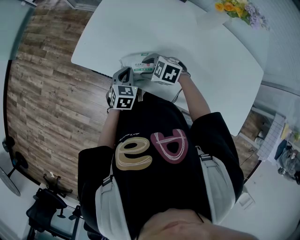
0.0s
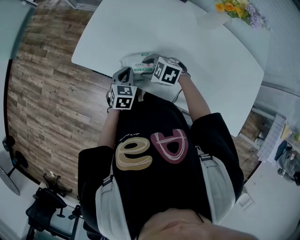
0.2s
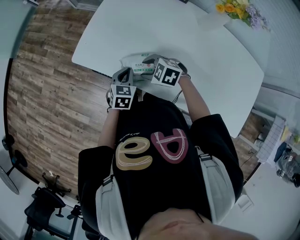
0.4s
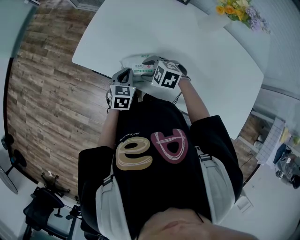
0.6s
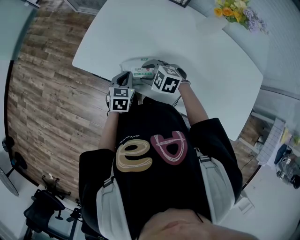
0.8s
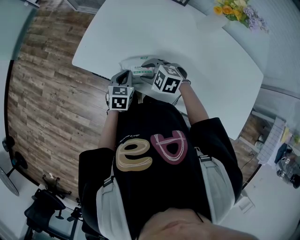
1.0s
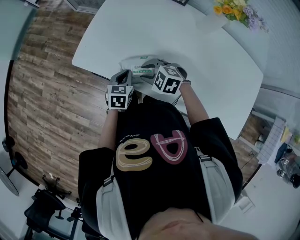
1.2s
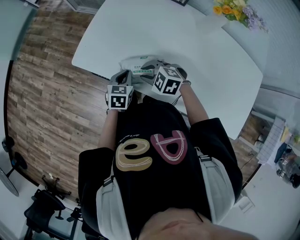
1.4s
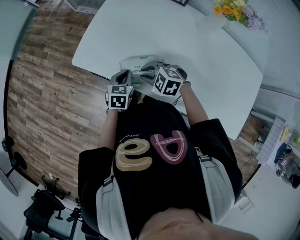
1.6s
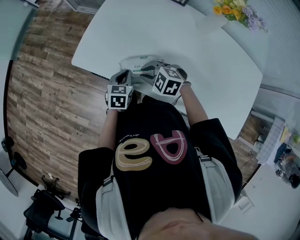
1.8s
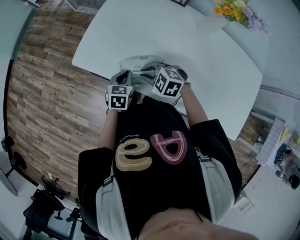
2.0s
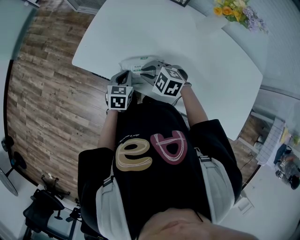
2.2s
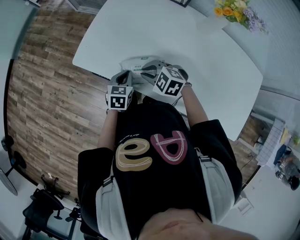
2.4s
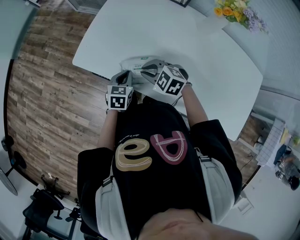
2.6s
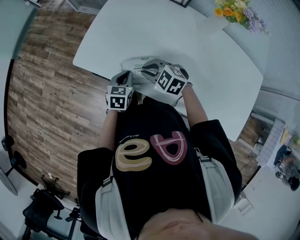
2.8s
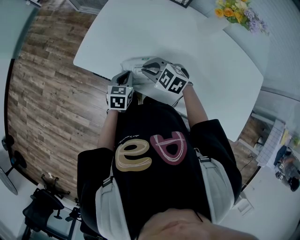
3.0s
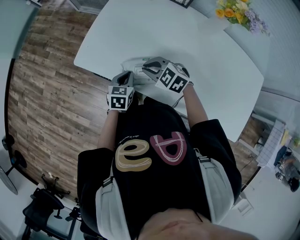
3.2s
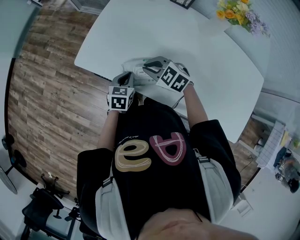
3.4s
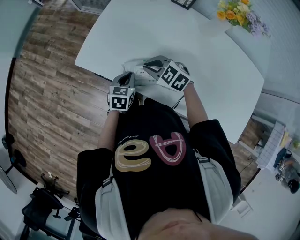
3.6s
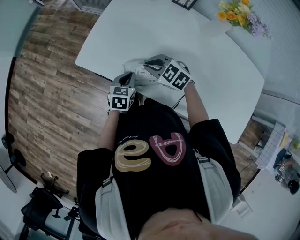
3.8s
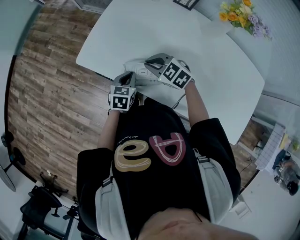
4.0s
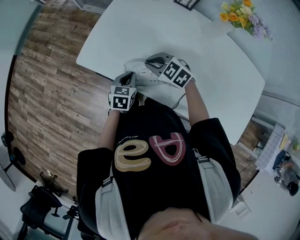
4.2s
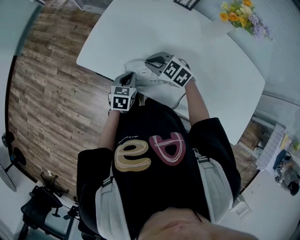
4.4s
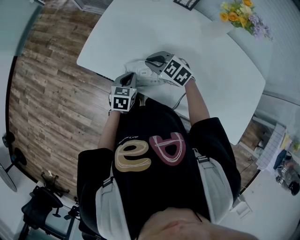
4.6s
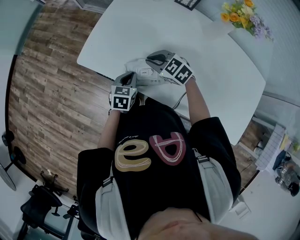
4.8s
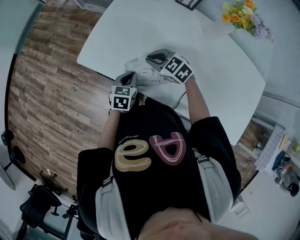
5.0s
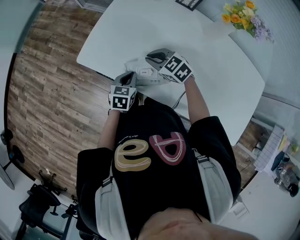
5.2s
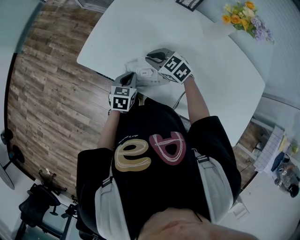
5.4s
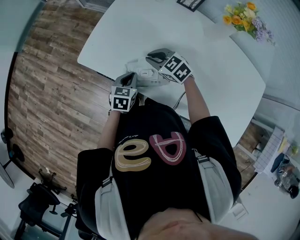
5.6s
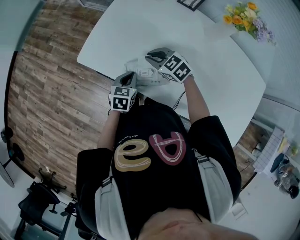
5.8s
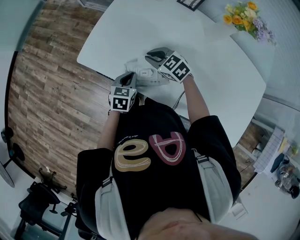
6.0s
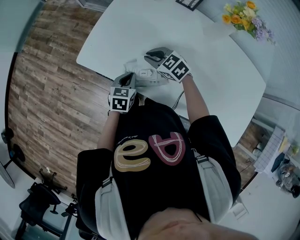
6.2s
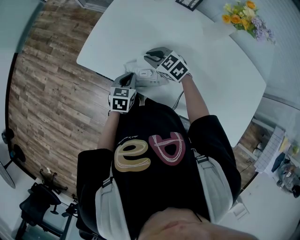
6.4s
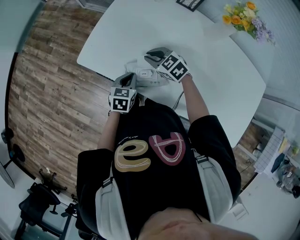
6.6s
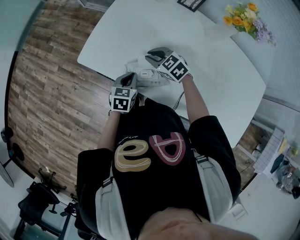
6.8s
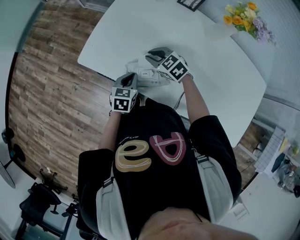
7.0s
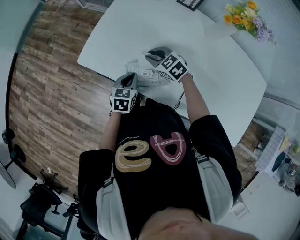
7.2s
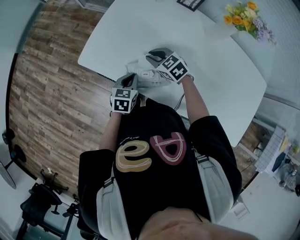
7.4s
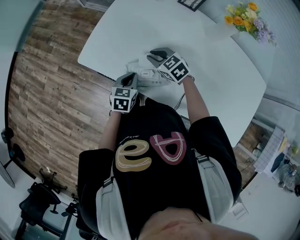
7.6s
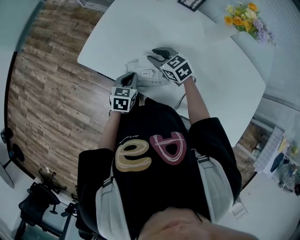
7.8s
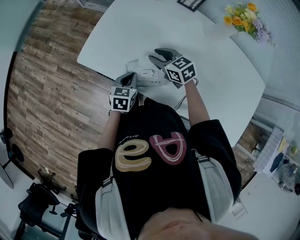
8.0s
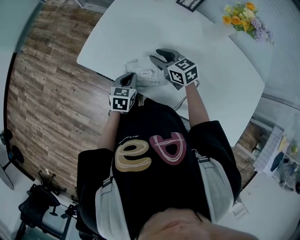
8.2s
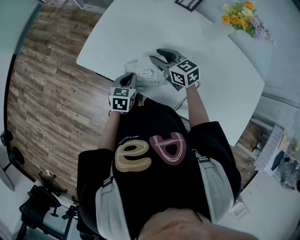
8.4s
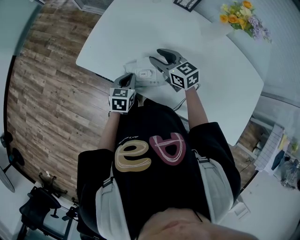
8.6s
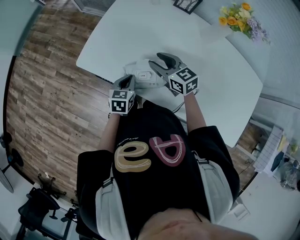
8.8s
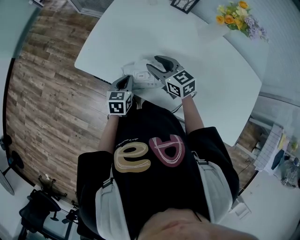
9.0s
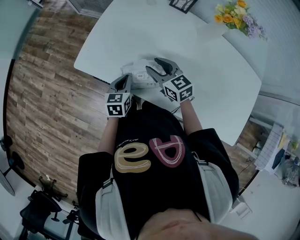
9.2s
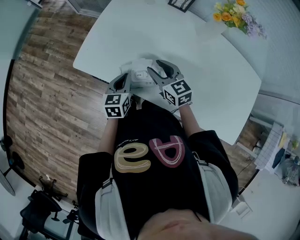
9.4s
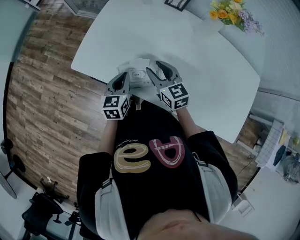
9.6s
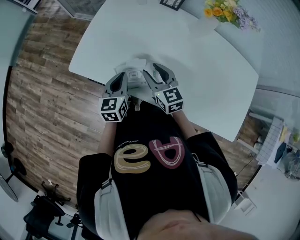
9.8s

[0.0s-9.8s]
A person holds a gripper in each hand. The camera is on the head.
0.0s to 1.4s: The right gripper closes up.
1.4s to 4.2s: The grippers make only small movements.
4.2s to 7.0s: There are only small adjustments of the grippers.
7.0s to 8.4s: The right gripper shifts by about 5 cm, swivels some 20 degrees, and opens.
8.4s to 9.8s: The left gripper shifts about 10 cm upward, and rotates roughly 20 degrees. Meanwhile the right gripper travels backward by roughly 5 cm, and rotates some 20 degrees.

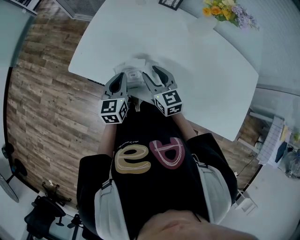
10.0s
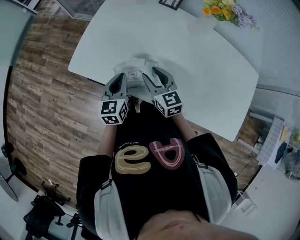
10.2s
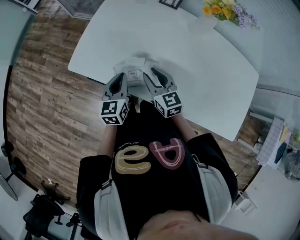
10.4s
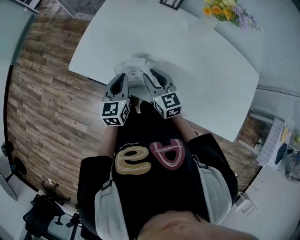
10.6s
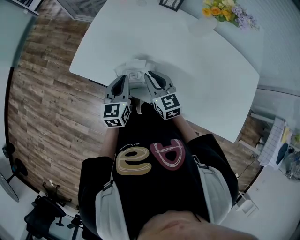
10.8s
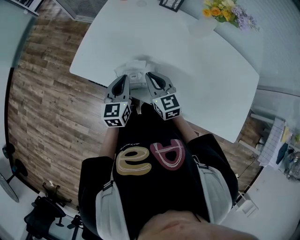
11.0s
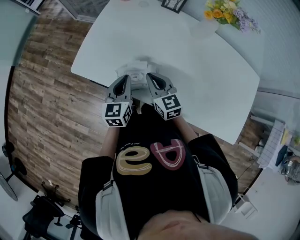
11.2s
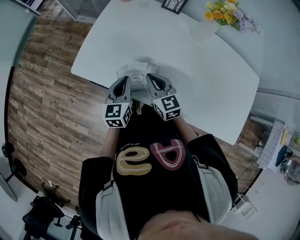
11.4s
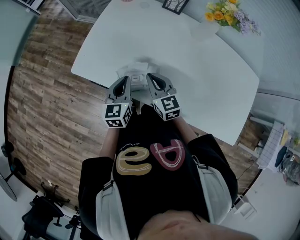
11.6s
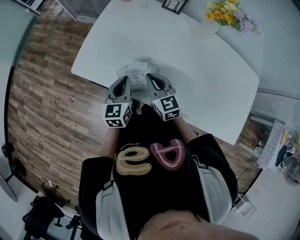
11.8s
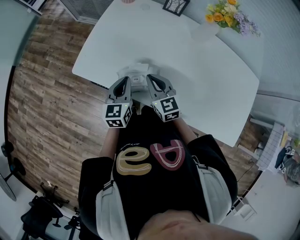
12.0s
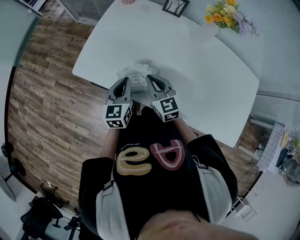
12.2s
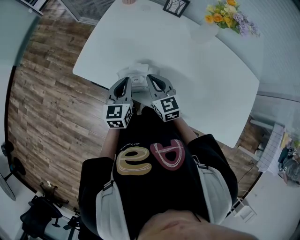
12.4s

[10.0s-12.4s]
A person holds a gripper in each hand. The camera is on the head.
10.0s to 11.2s: The right gripper closes its fingers.
11.2s to 12.4s: Both grippers stay put.

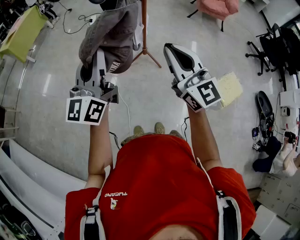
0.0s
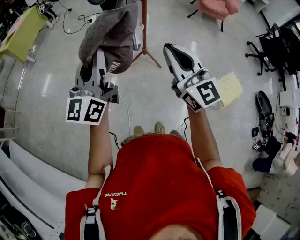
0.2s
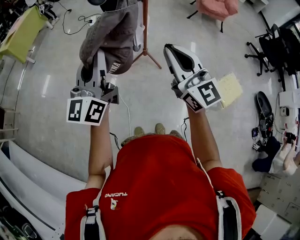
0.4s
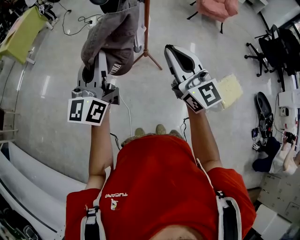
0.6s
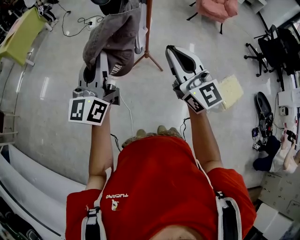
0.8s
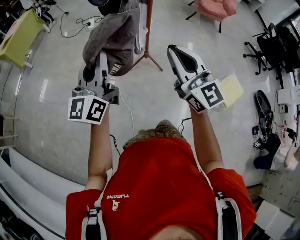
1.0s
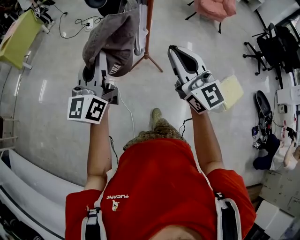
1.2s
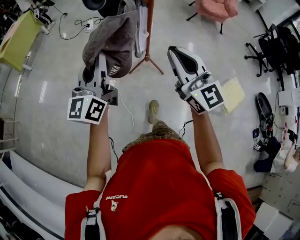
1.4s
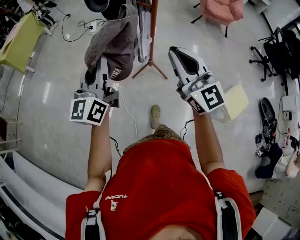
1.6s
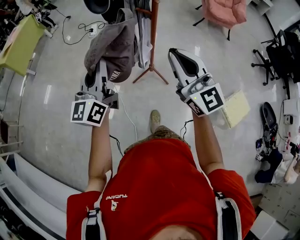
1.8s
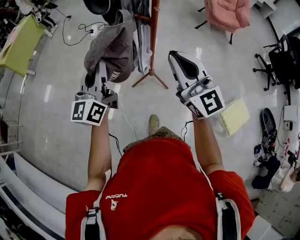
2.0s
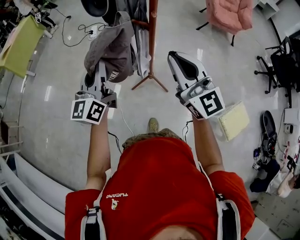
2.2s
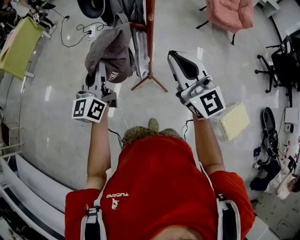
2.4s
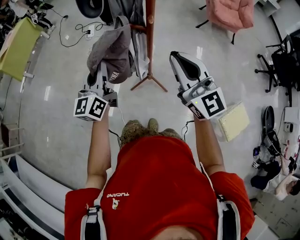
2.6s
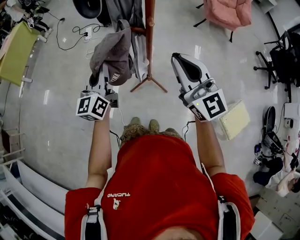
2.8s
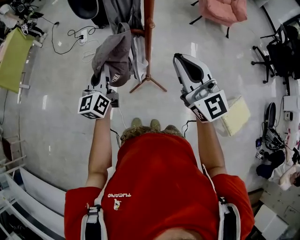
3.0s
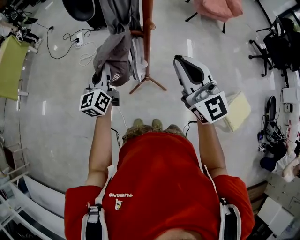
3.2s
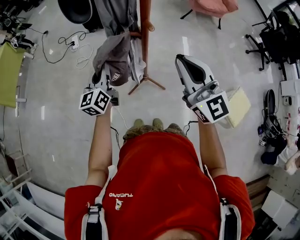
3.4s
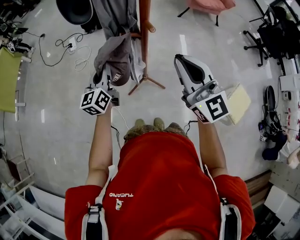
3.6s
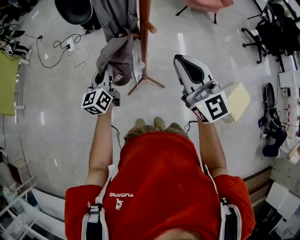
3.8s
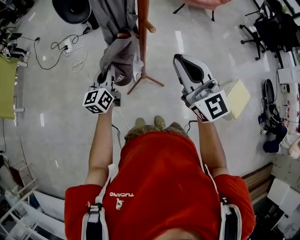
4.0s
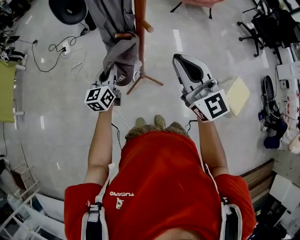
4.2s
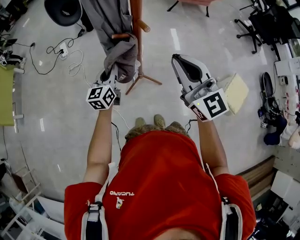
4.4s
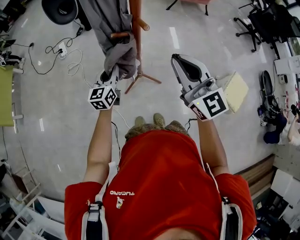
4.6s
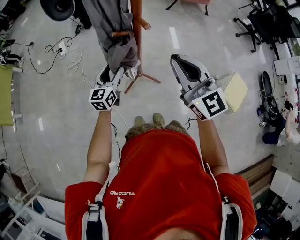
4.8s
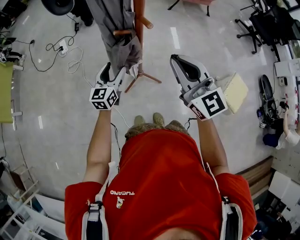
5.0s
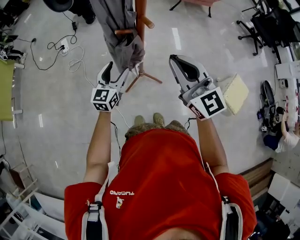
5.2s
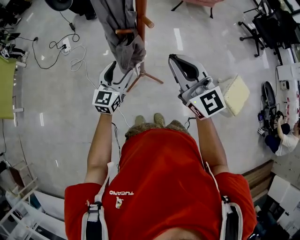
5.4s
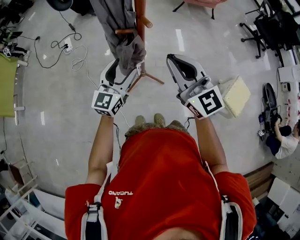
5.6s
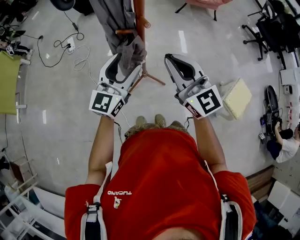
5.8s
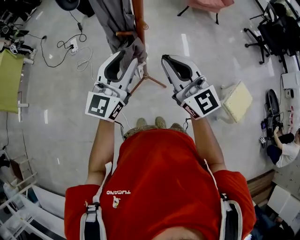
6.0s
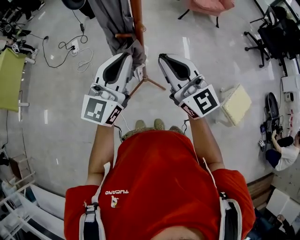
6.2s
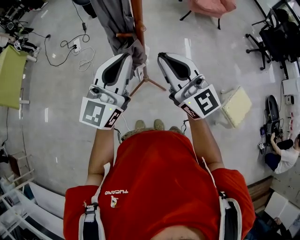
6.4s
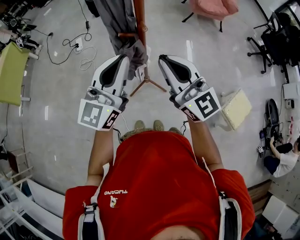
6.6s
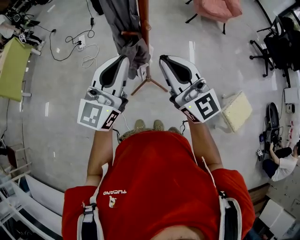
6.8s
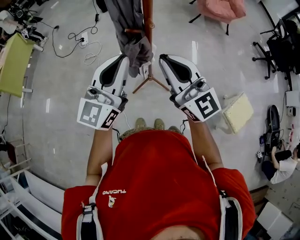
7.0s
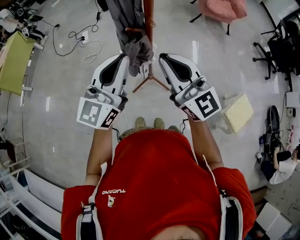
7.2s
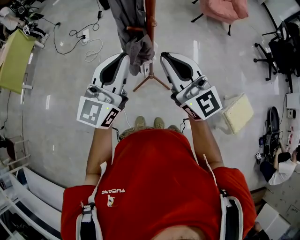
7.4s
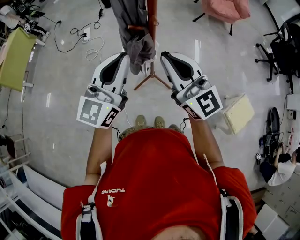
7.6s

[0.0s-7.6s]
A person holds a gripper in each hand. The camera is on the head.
0.0s to 1.6s: The two grippers go some 15 cm forward.
1.6s to 3.0s: The left gripper is displaced forward and downward by about 30 cm. Meanwhile the right gripper moves forward, roughly 20 cm.
3.0s to 4.6s: The left gripper moves downward, forward and to the right, roughly 15 cm, and rotates roughly 30 degrees.
4.6s to 6.0s: The left gripper goes about 20 cm upward, changes its angle by approximately 30 degrees, and opens, then closes again.
6.0s to 7.6s: The left gripper changes place by approximately 5 cm, and closes its fingers.

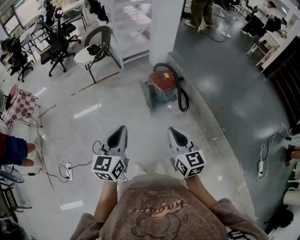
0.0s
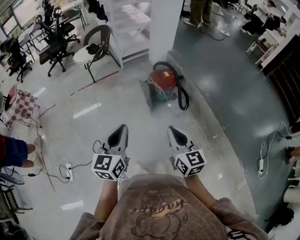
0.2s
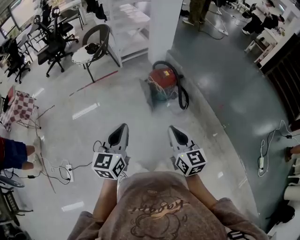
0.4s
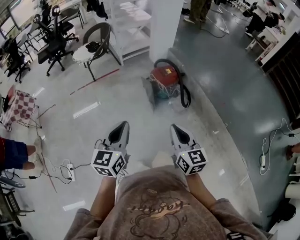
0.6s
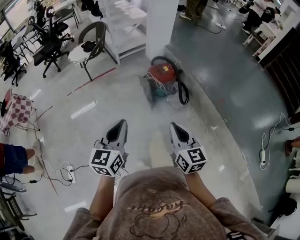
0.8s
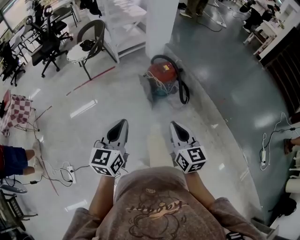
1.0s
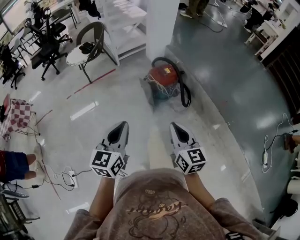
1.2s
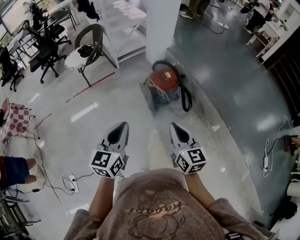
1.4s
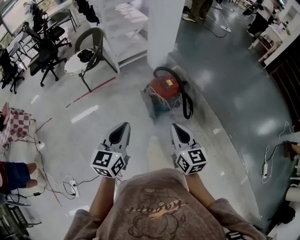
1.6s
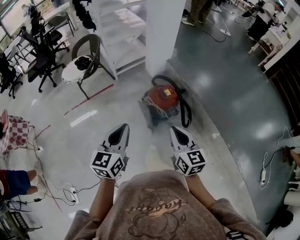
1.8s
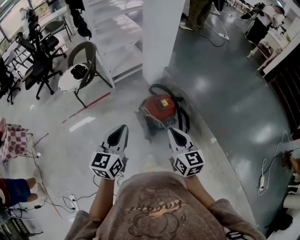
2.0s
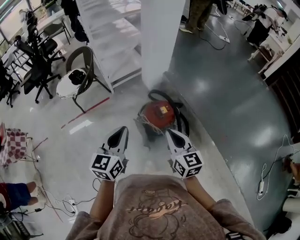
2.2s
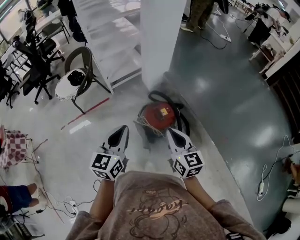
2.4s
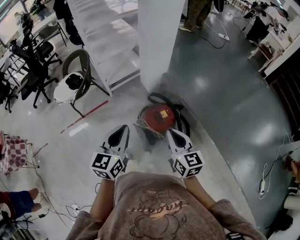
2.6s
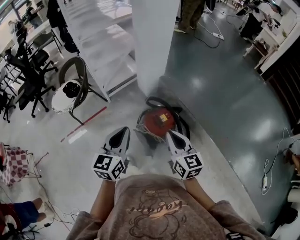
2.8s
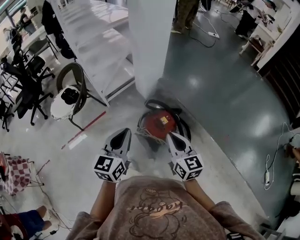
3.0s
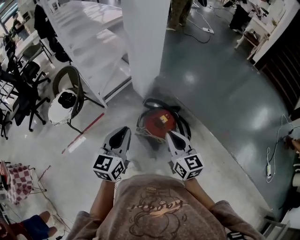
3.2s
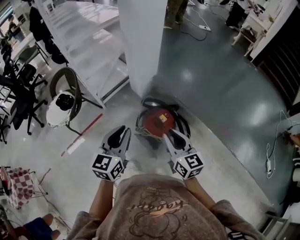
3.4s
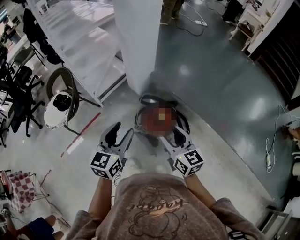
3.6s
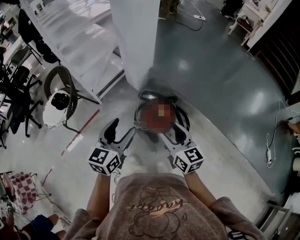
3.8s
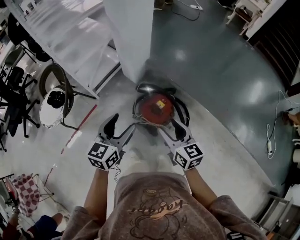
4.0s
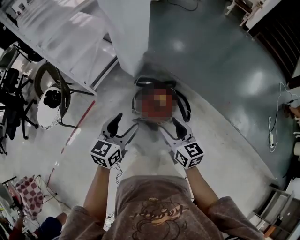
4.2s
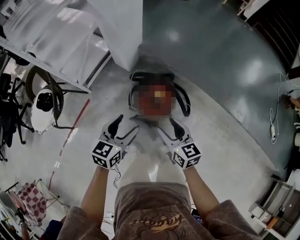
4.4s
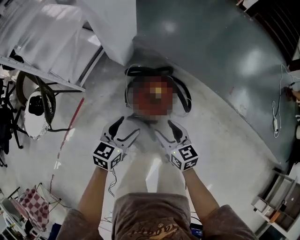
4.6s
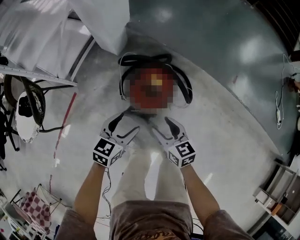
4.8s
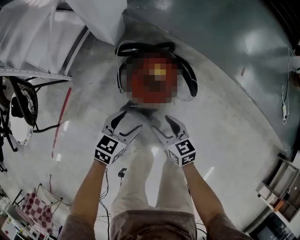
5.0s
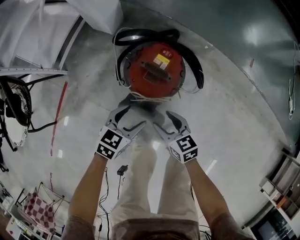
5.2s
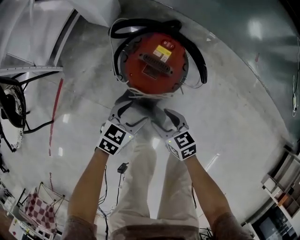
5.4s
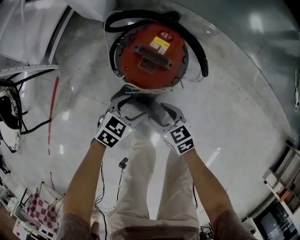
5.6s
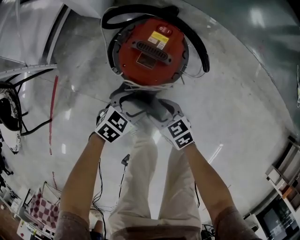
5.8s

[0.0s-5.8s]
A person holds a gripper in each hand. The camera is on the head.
0.0s to 1.4s: The two grippers go approximately 10 cm forward.
1.4s to 2.8s: Both grippers travel together forward, approximately 35 cm.
2.8s to 4.4s: The right gripper is displaced downward by about 15 cm, and opens, while the left gripper travels downward and forward by roughly 20 cm, turns by roughly 40 degrees, and opens its fingers.
4.4s to 5.8s: Both grippers move downward, roughly 40 cm. The right gripper turns by approximately 20 degrees. The left gripper swivels about 50 degrees.
